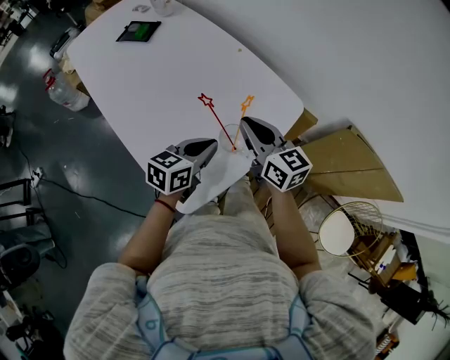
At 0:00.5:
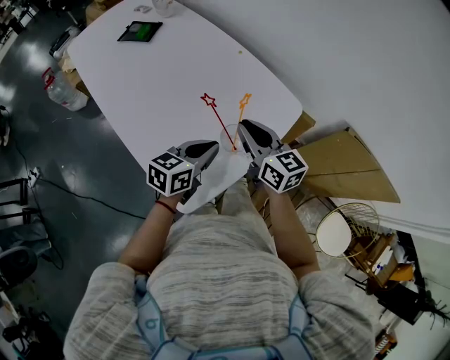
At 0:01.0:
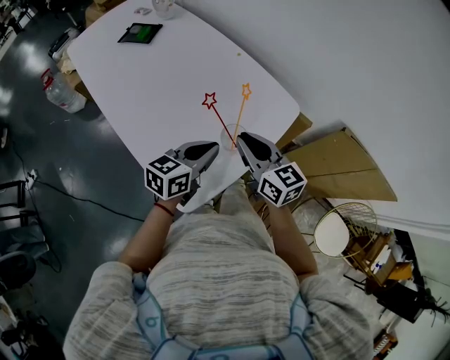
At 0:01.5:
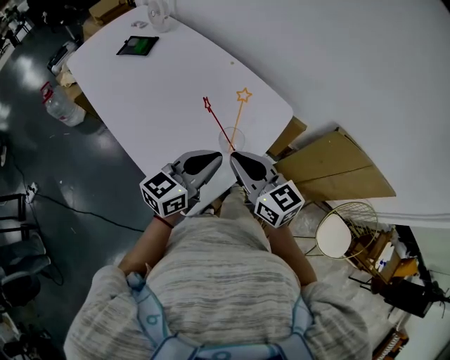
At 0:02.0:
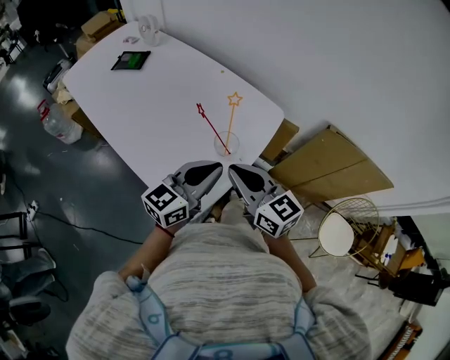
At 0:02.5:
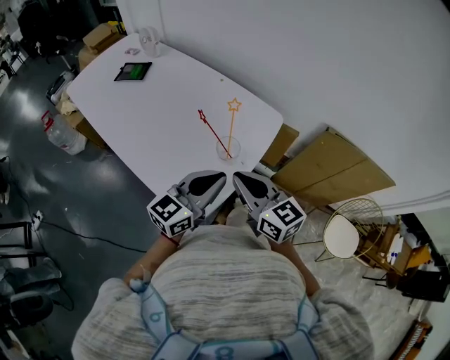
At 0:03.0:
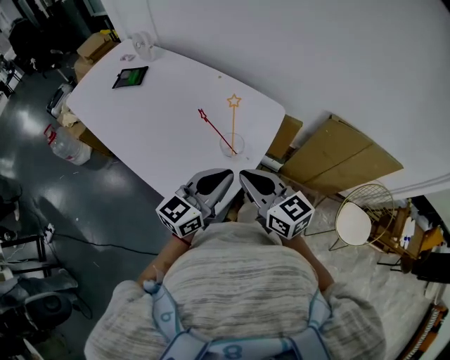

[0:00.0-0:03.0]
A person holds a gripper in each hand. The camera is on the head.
0:00.0 to 0:01.5: The right gripper heads backward, covering approximately 10 cm. Meanwhile the left gripper goes roughly 10 cm upward and backward, and turns by some 20 degrees.
0:01.5 to 0:03.0: The right gripper moves backward, some 5 cm. Meanwhile the left gripper shifts by about 5 cm.

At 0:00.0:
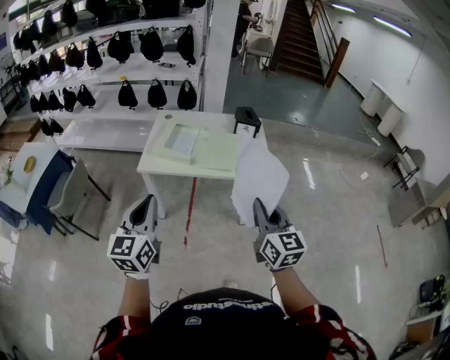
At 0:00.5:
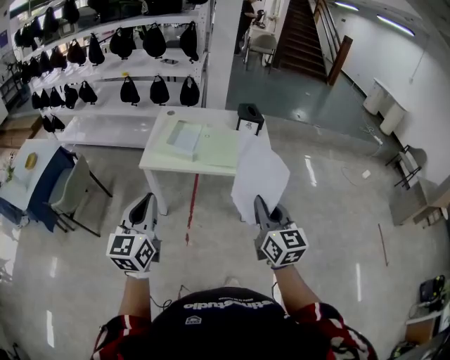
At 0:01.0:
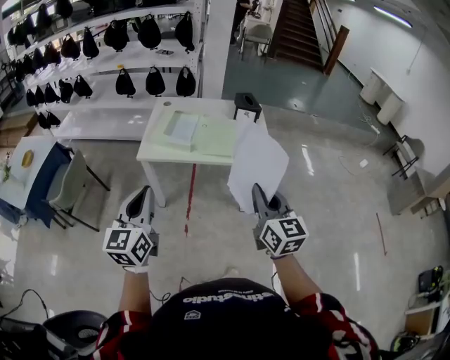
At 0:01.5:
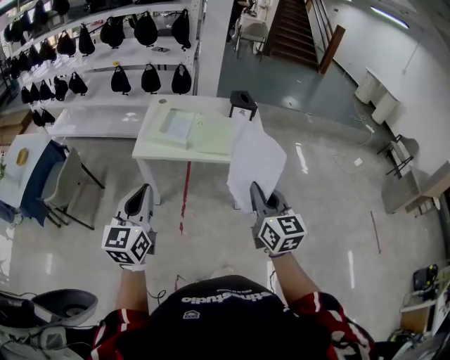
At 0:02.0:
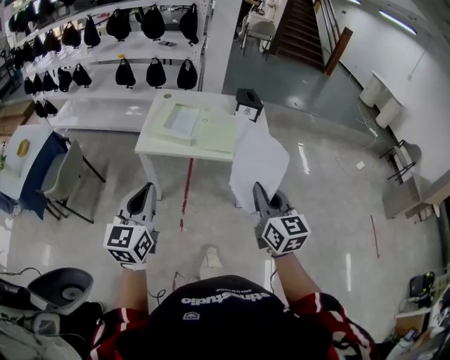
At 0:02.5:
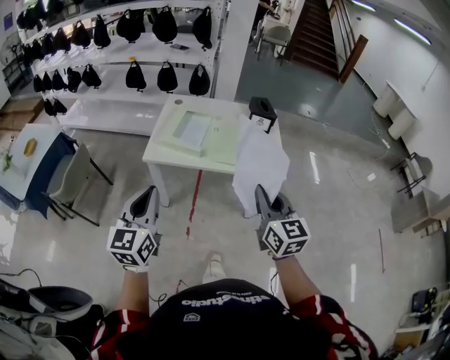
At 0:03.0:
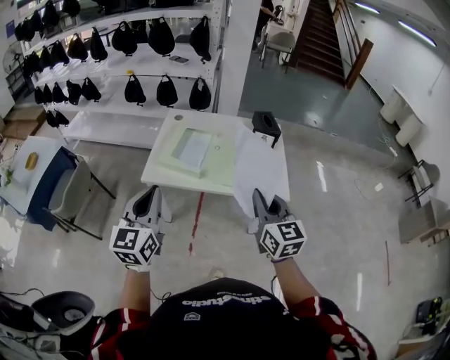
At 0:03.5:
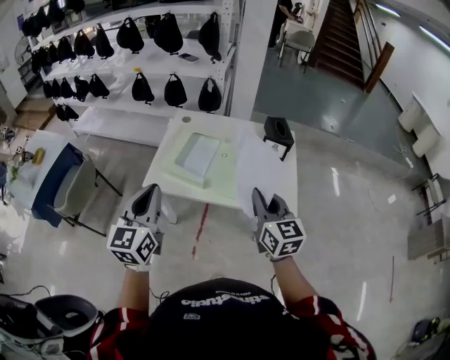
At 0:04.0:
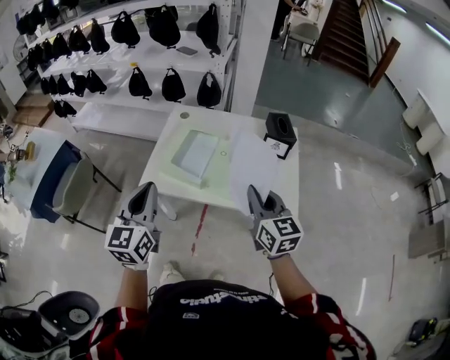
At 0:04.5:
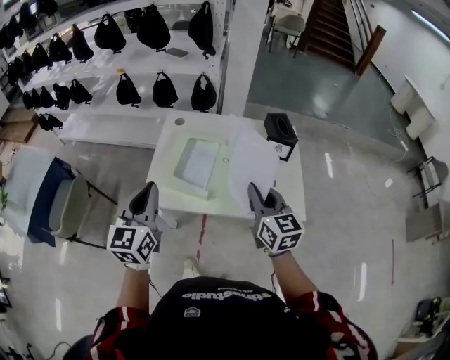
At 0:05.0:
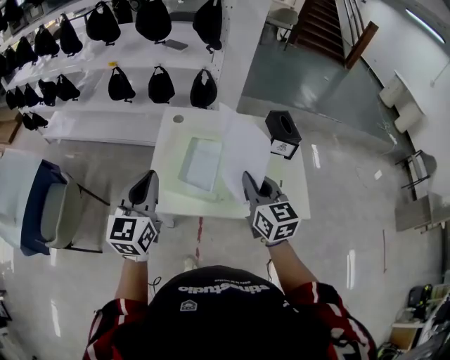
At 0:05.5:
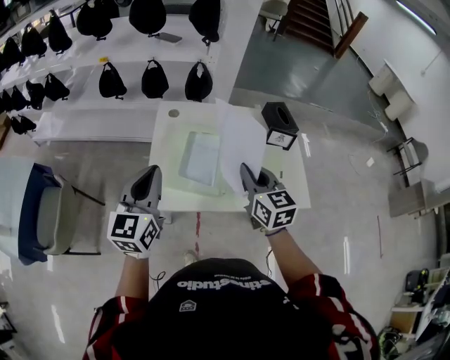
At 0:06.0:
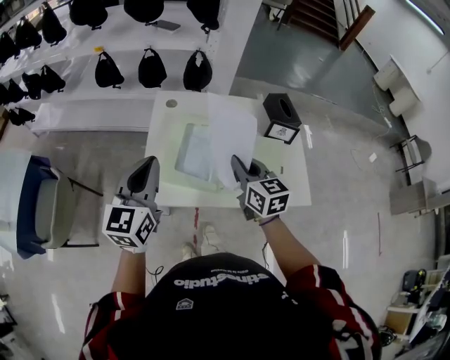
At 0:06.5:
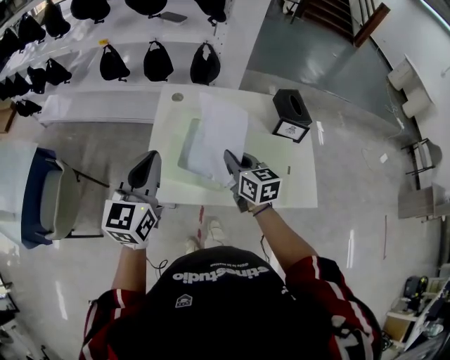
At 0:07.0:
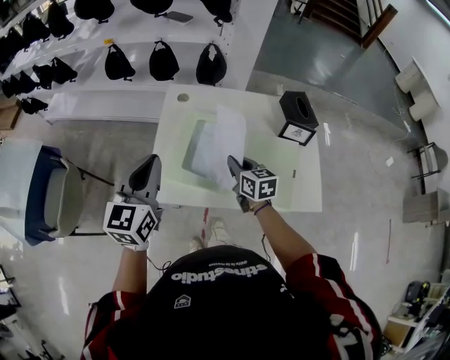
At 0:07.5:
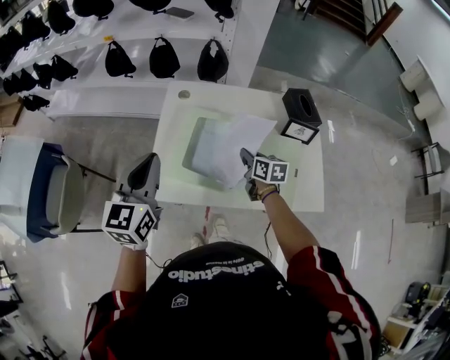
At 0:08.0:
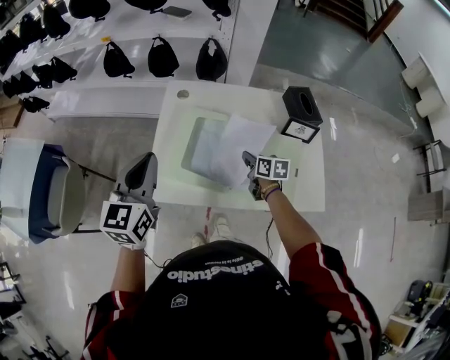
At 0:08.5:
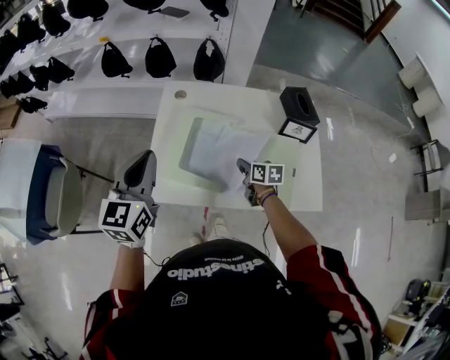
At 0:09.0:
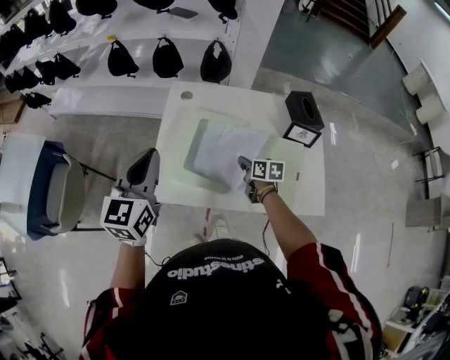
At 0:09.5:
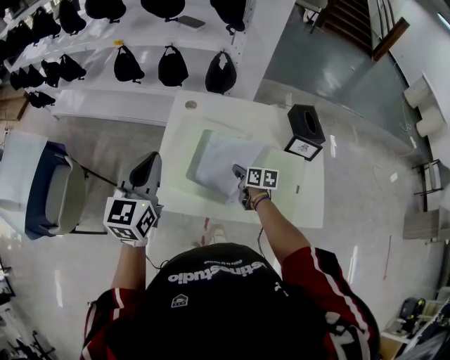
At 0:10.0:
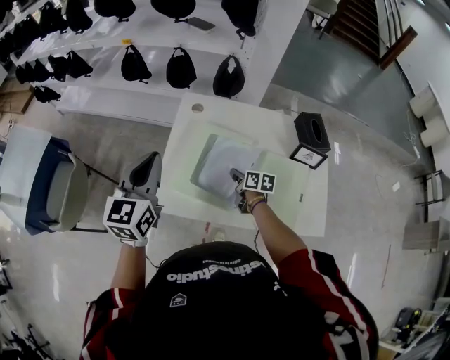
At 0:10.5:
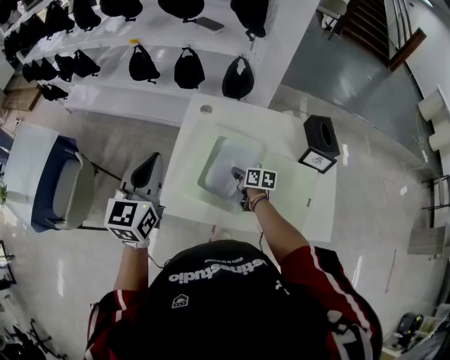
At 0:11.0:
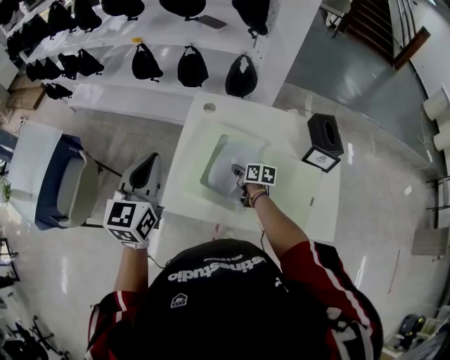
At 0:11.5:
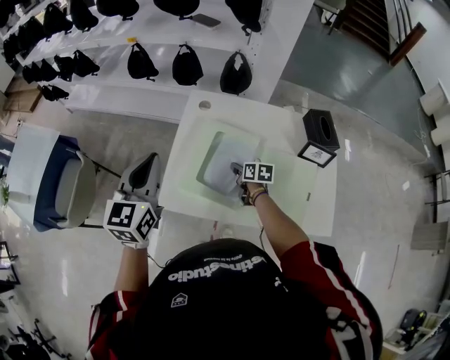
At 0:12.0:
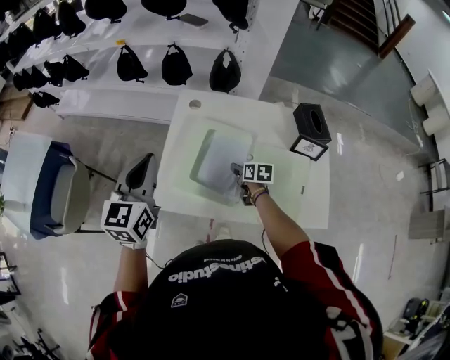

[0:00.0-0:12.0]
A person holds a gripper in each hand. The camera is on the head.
0:00.0 to 0:02.0: The grippers stay close to where they were, moving slightly.
0:02.0 to 0:04.0: Both grippers move forward, about 30 cm.
0:04.0 to 0:06.0: Both grippers travel together forward and to the left, about 20 cm.
0:06.0 to 0:08.0: The right gripper shifts approximately 20 cm downward and forward, and changes its angle by roughly 30 degrees.
0:08.0 to 0:10.0: The right gripper heads to the left, covering approximately 5 cm.
0:10.0 to 0:12.0: The right gripper opens.

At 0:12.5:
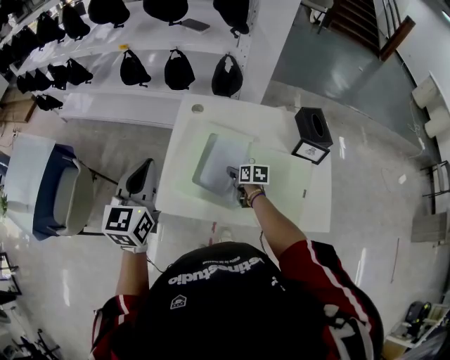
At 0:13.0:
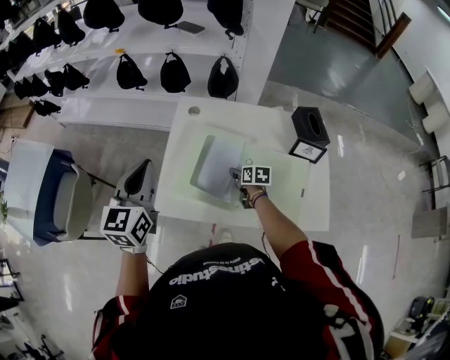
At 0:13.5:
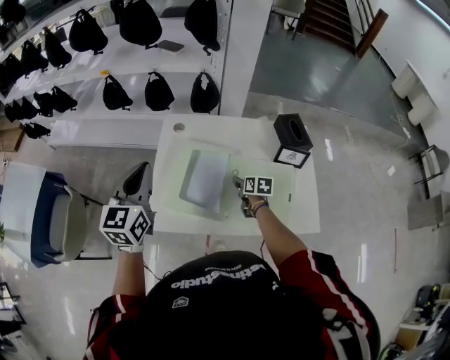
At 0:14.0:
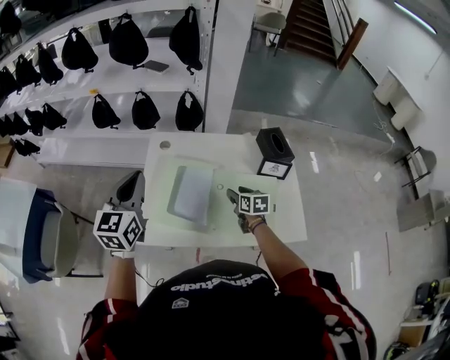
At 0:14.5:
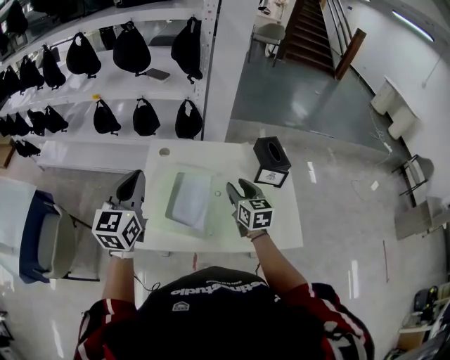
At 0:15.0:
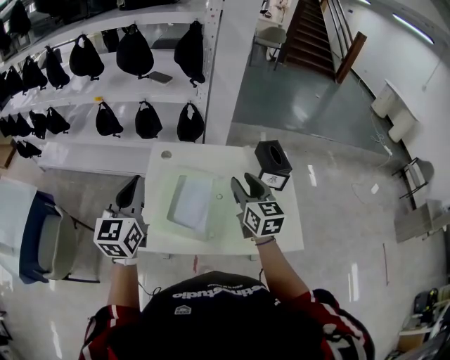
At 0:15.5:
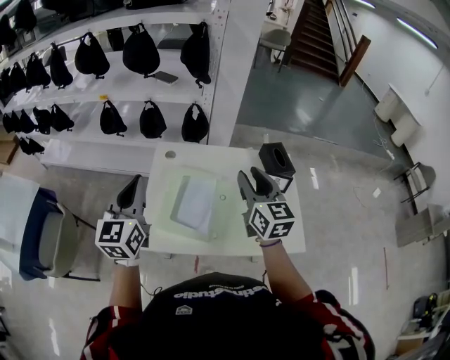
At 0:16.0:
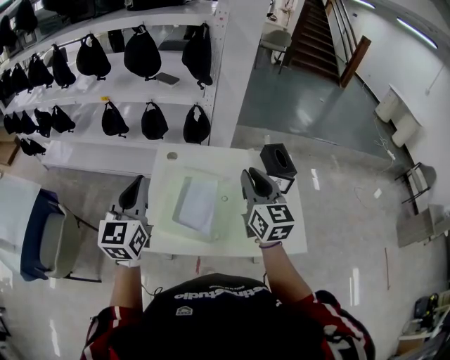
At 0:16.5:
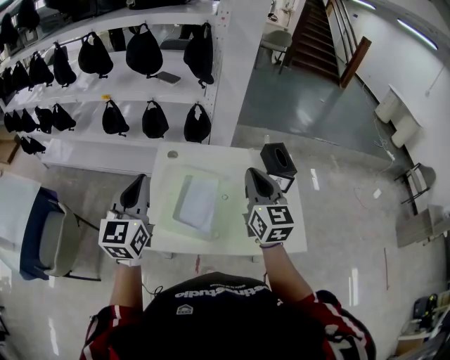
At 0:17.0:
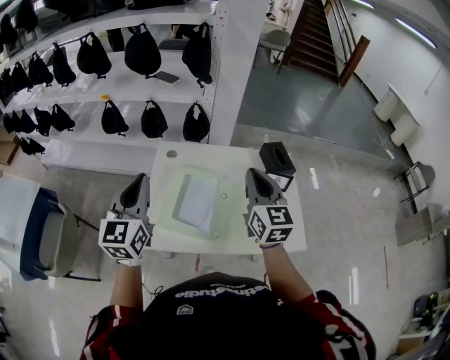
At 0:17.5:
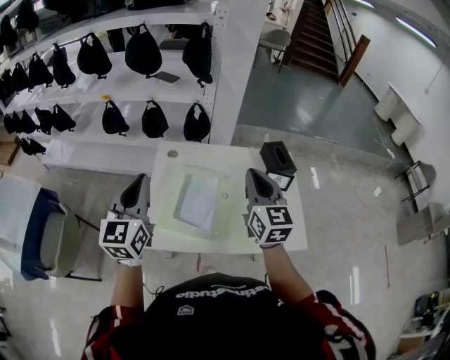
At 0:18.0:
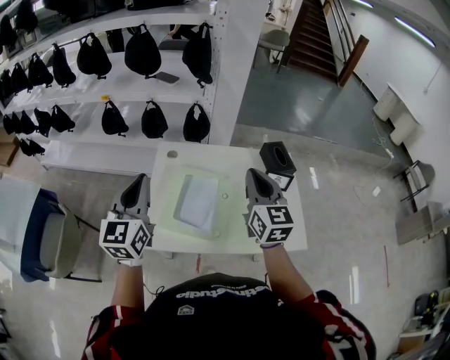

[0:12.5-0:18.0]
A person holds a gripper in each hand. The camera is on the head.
0:12.5 to 0:14.5: The left gripper moves to the right and upward, about 5 cm. The right gripper goes approximately 25 cm upward, and turns by some 40 degrees.
0:14.5 to 0:16.0: The right gripper shifts roughly 15 cm upward, and closes.
0:16.0 to 0:18.0: There are only small adjustments of the grippers.

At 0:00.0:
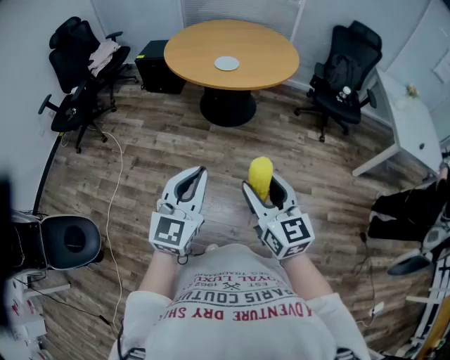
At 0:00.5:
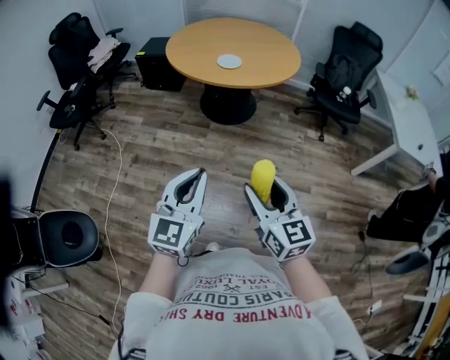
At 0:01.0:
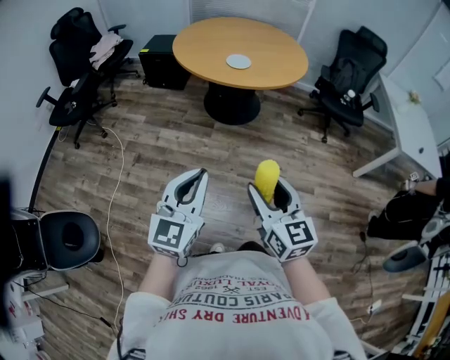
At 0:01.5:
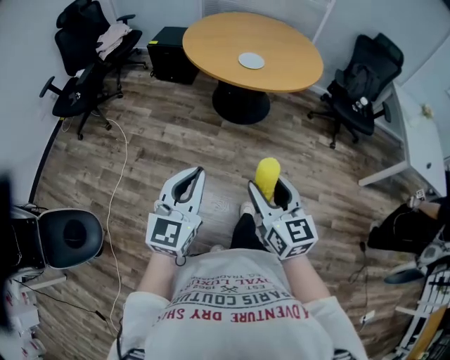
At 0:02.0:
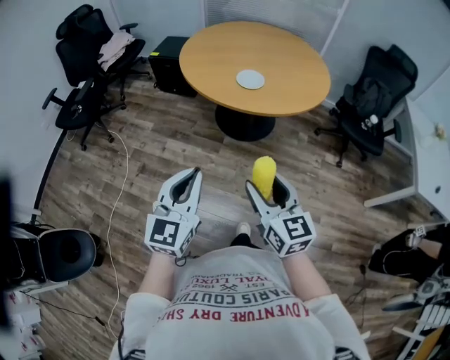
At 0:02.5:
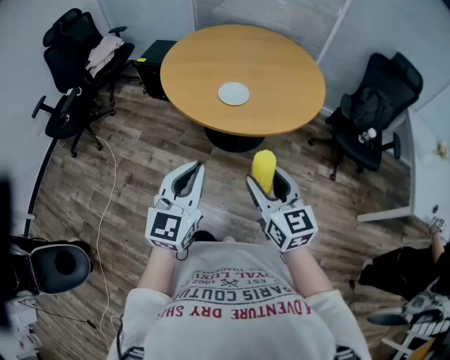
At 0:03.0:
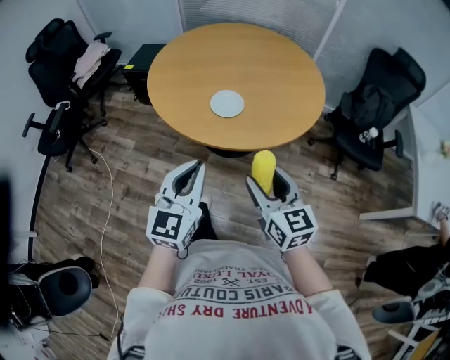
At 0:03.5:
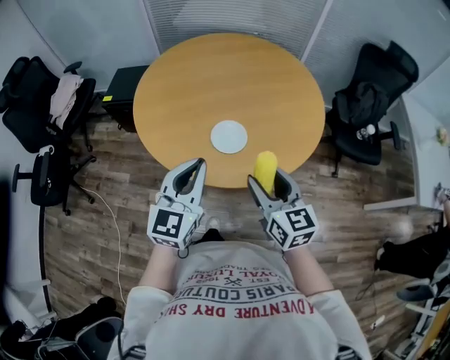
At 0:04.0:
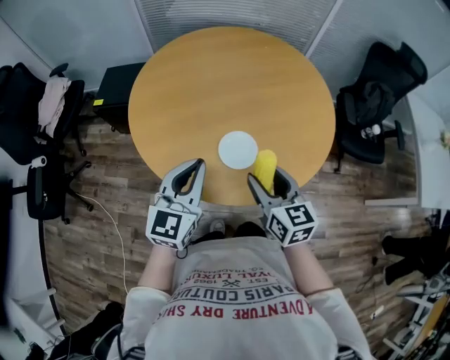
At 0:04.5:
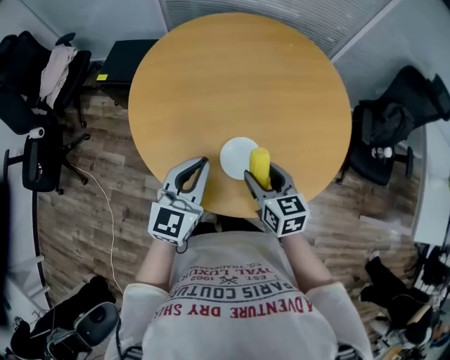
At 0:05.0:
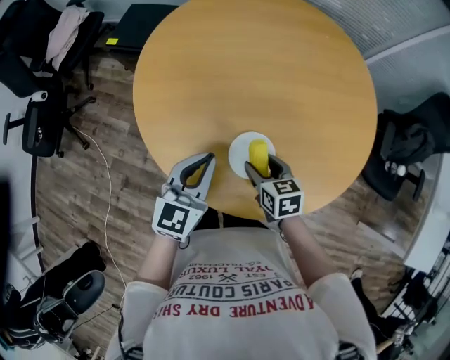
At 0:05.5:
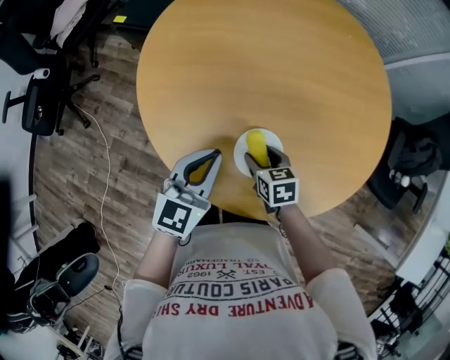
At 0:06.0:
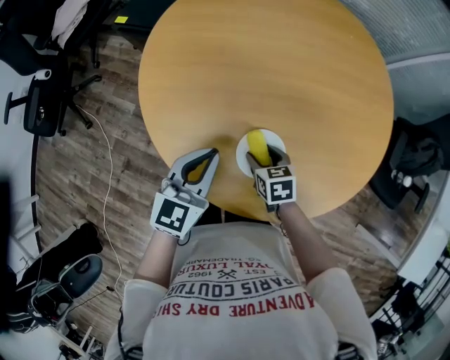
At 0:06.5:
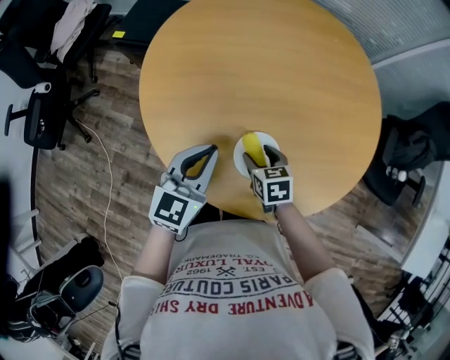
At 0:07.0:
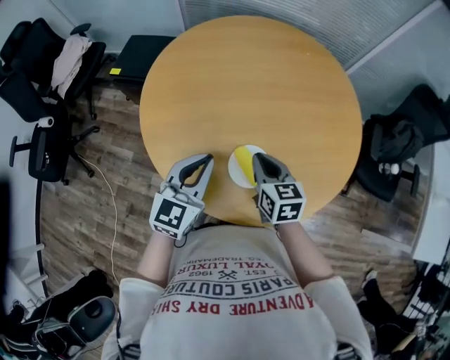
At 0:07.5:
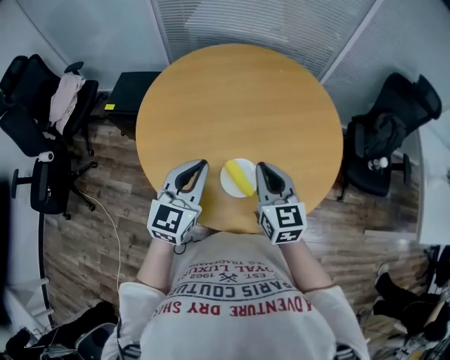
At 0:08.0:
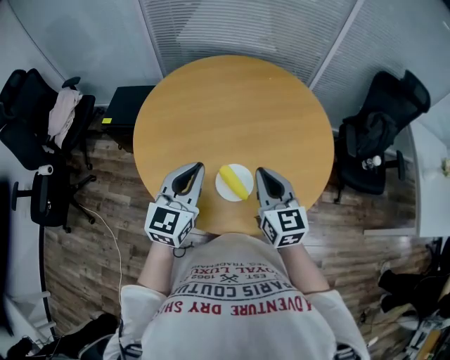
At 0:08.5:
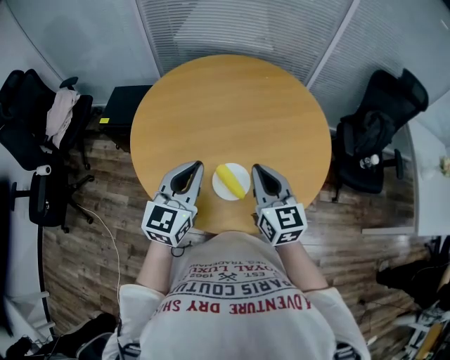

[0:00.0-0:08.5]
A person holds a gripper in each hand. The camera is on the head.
0:00.0 to 0:02.0: The grippers both shift forward by roughly 20 cm.
0:02.0 to 0:04.0: The pair of grippers is taken forward, some 50 cm.
0:04.0 to 0:06.5: The right gripper moves downward and forward, some 25 cm, and tilts its fingers approximately 30 degrees downward. Meanwhile the left gripper moves downward and forward, approximately 15 cm.
0:06.5 to 0:08.5: The right gripper travels upward by roughly 25 cm, angles its fingers upward, by about 40 degrees, and closes, while the left gripper is displaced upward by about 15 cm.
